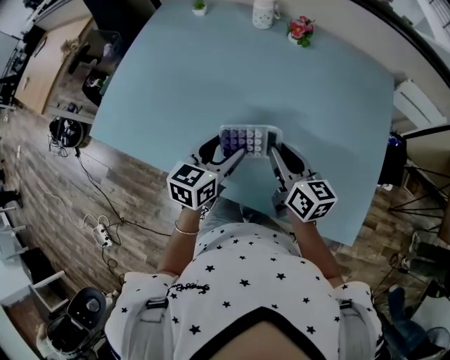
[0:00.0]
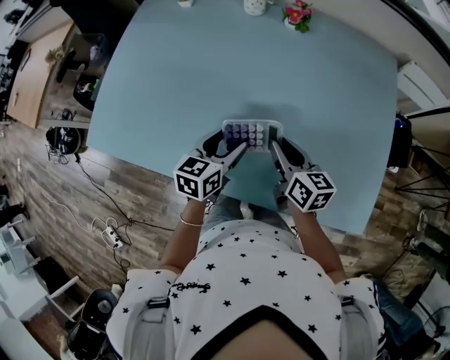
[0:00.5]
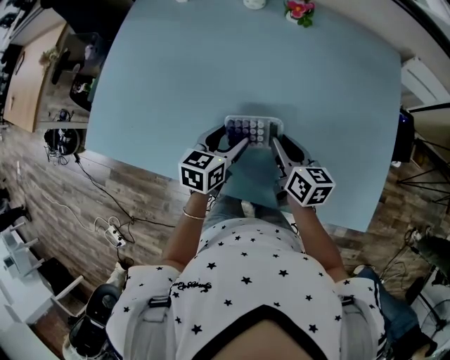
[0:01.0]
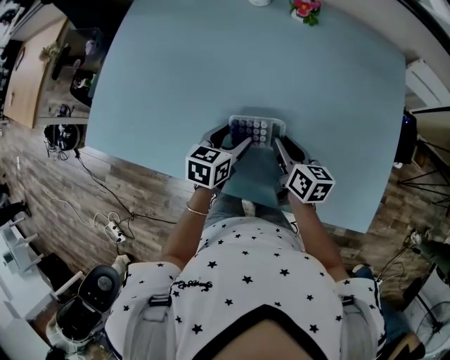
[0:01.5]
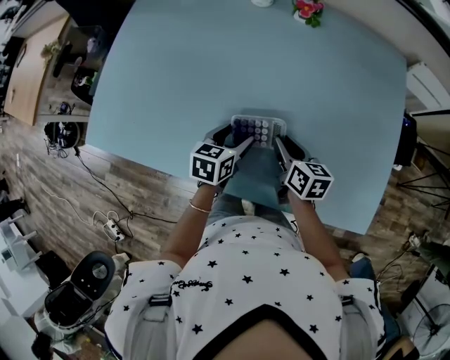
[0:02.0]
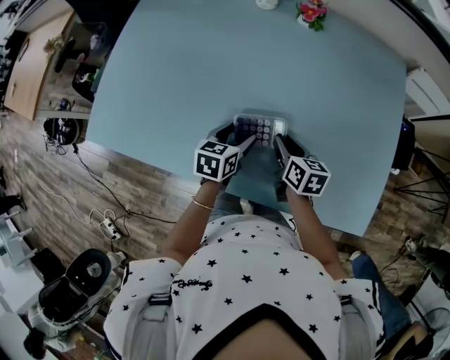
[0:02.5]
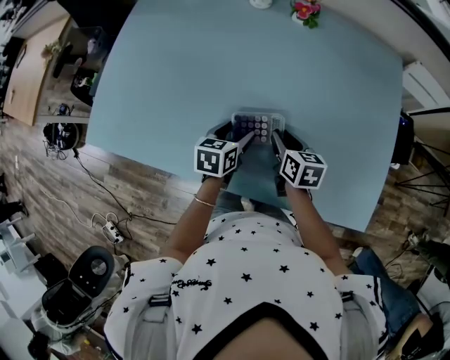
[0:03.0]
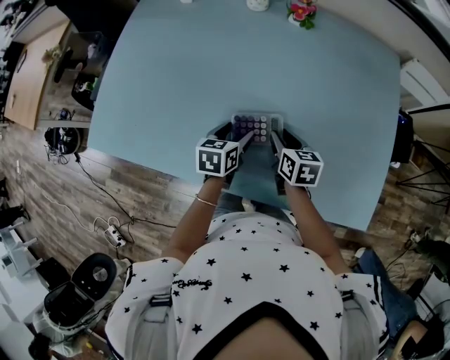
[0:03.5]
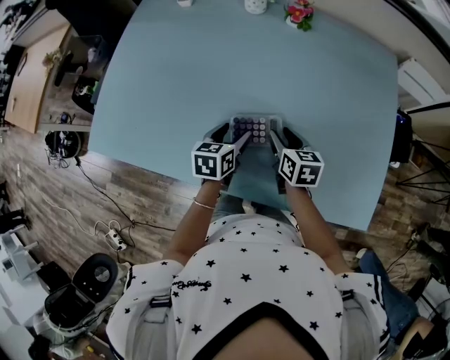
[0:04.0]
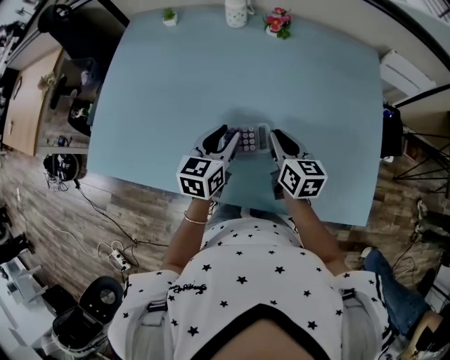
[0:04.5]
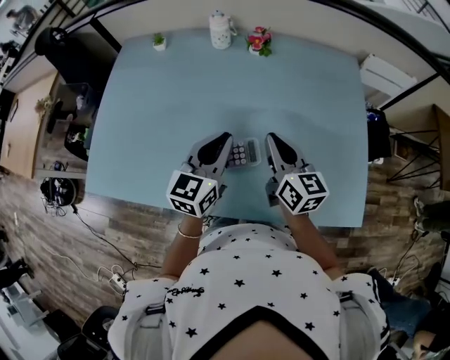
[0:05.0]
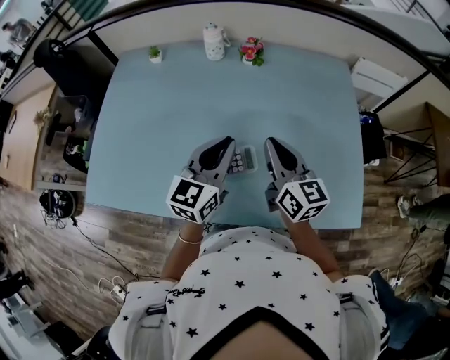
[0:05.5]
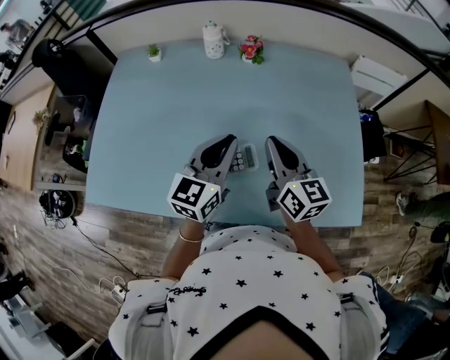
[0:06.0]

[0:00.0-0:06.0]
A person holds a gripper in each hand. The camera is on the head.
0:00.0 to 0:02.0: The two grippers go roughly 10 cm downward. The right gripper rotates approximately 20 degrees.
0:02.0 to 0:04.0: The right gripper opens up.
0:04.0 to 0:06.0: Both grippers move upward, about 20 cm. The left gripper tips its fingers upward by about 30 degrees, and closes. The right gripper tilts its fingers about 30 degrees upward, and closes.

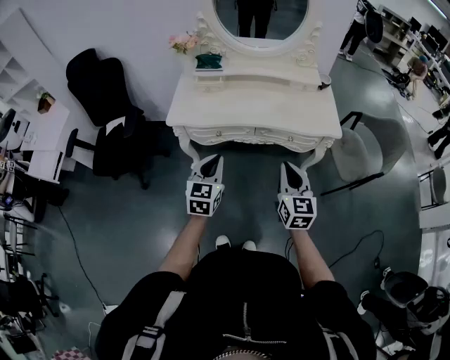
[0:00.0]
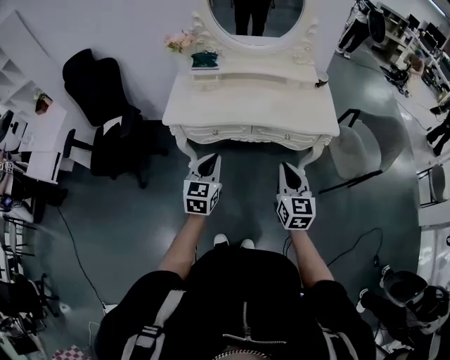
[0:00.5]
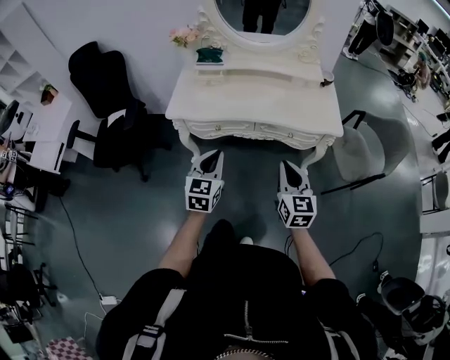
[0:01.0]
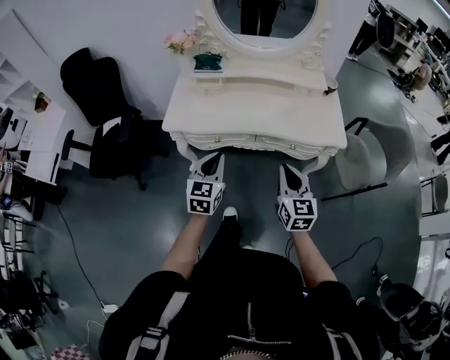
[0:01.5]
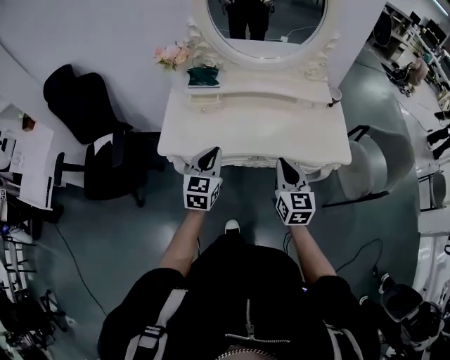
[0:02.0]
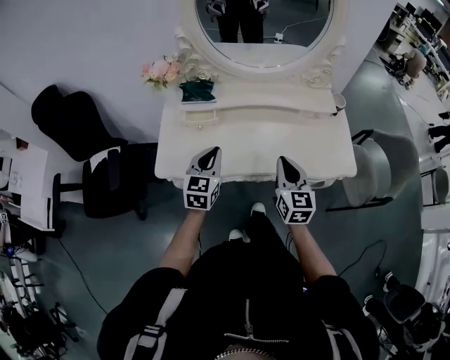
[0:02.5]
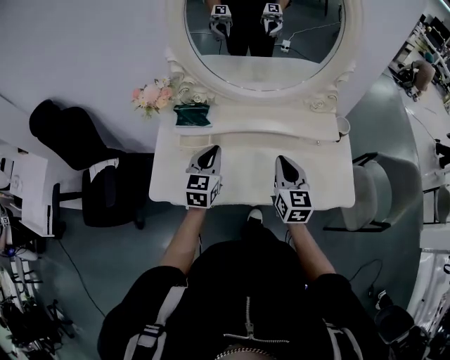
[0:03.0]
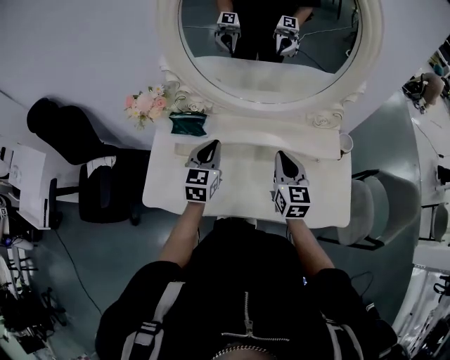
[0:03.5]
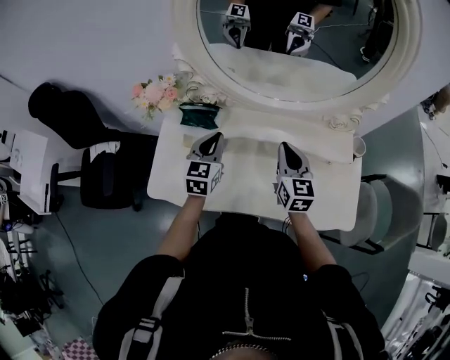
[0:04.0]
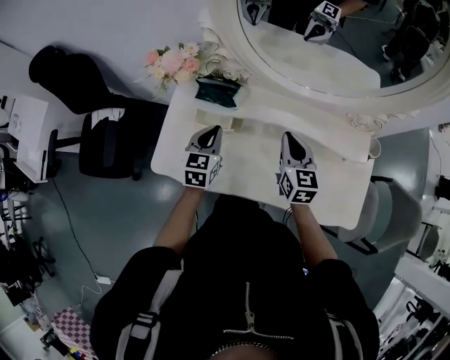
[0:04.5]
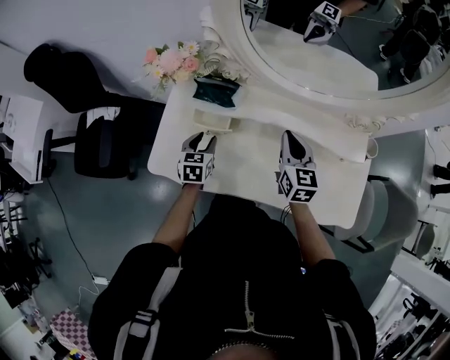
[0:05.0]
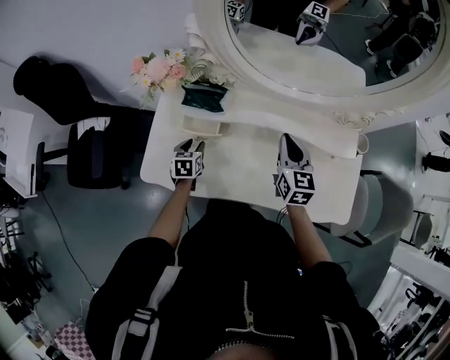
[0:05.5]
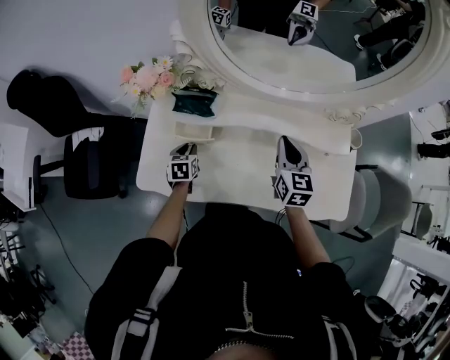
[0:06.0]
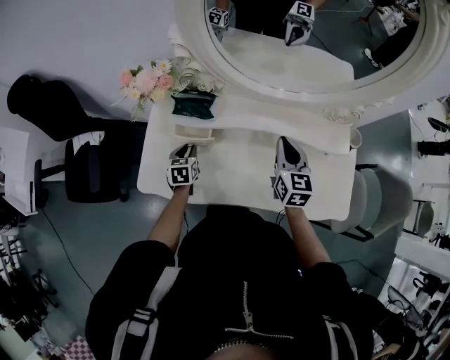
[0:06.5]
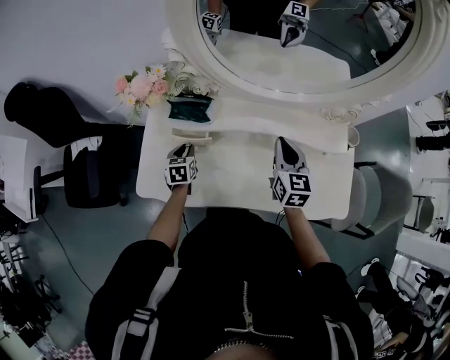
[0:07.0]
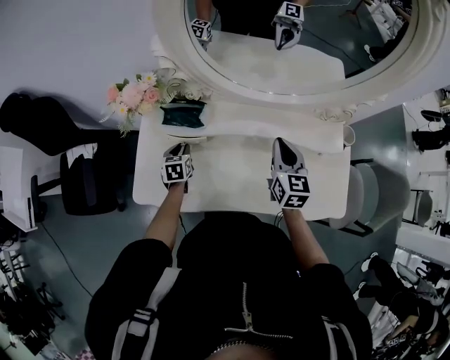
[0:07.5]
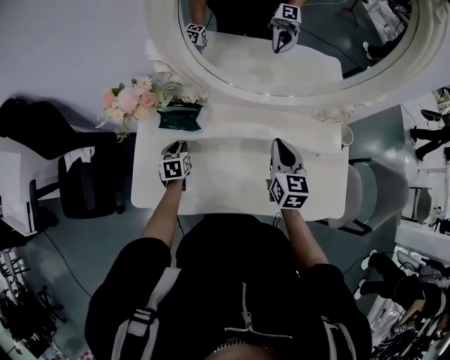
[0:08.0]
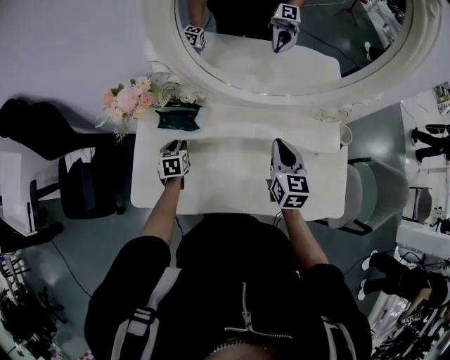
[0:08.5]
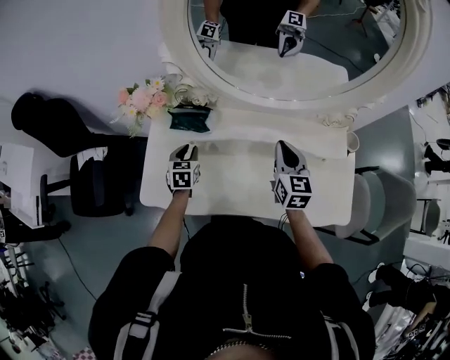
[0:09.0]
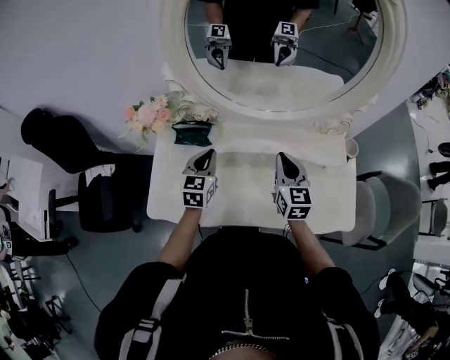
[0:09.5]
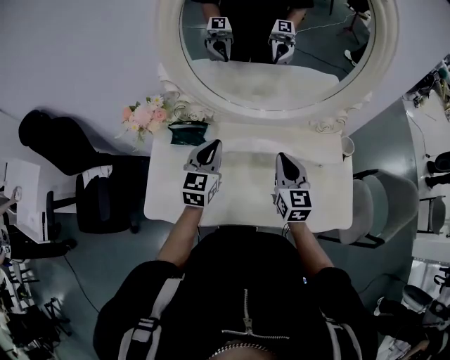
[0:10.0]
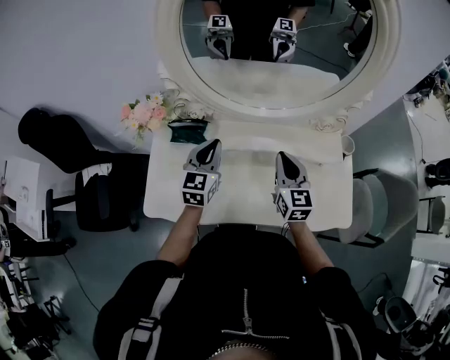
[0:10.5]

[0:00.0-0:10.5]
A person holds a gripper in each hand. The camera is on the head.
0:00.0 to 0:02.0: Both grippers travel together forward, about 20 cm.
0:02.0 to 0:04.0: The grippers both shift forward by some 35 cm.
0:04.0 to 0:06.5: The left gripper shifts about 25 cm downward and to the left, swivels about 30 degrees, and opens.
0:06.5 to 0:08.5: The left gripper heads forward, covering roughly 5 cm.
0:08.5 to 0:10.5: The left gripper moves upward and to the right, approximately 30 cm, points its fingers about 30 degrees further upward, and closes.

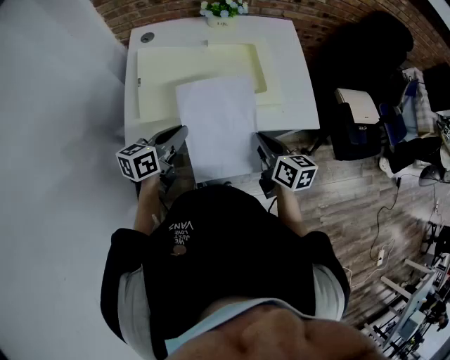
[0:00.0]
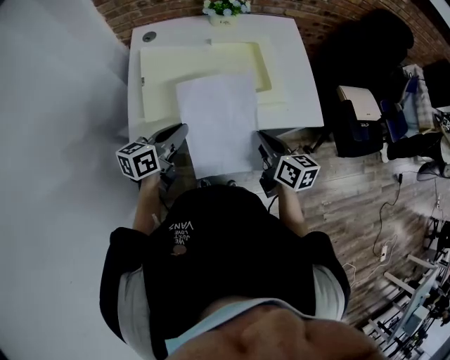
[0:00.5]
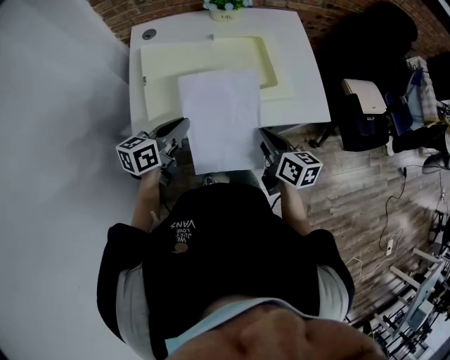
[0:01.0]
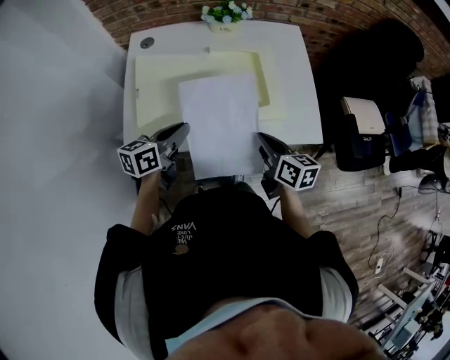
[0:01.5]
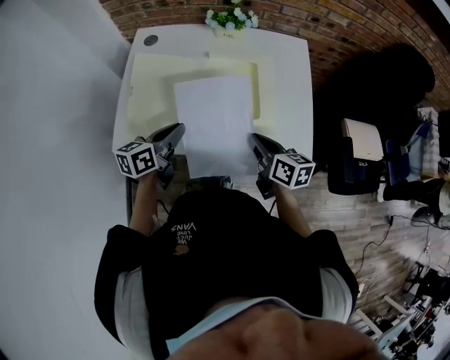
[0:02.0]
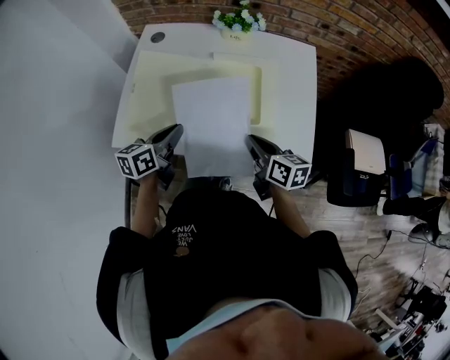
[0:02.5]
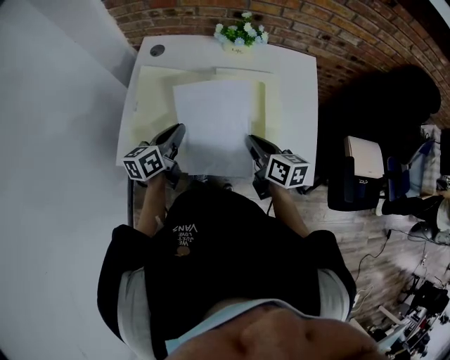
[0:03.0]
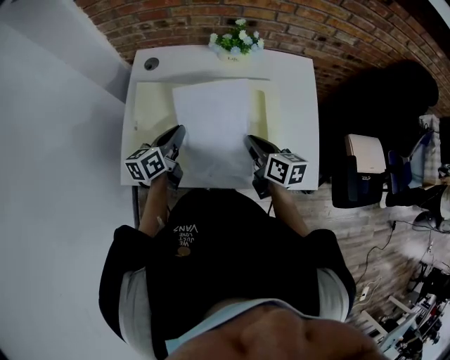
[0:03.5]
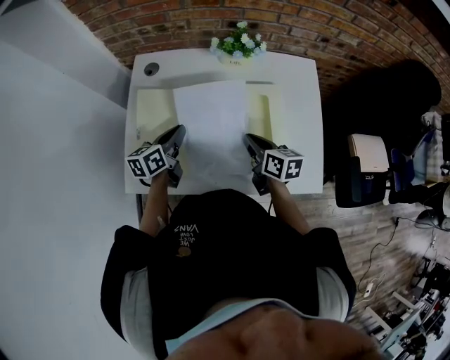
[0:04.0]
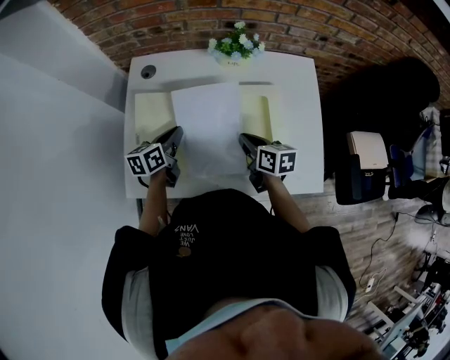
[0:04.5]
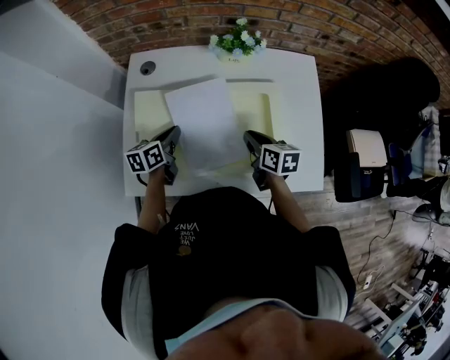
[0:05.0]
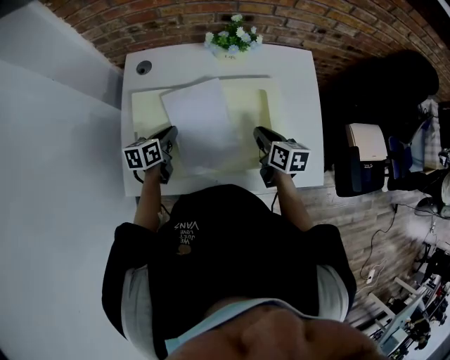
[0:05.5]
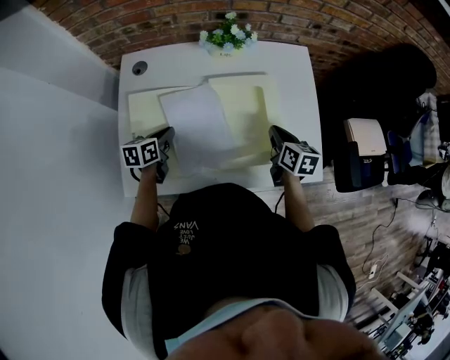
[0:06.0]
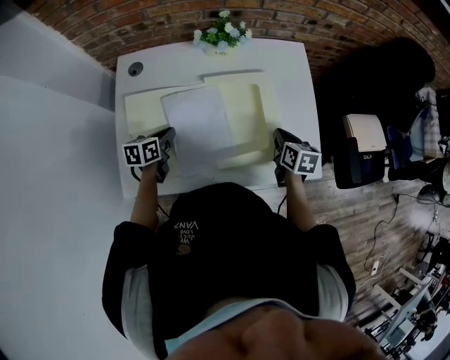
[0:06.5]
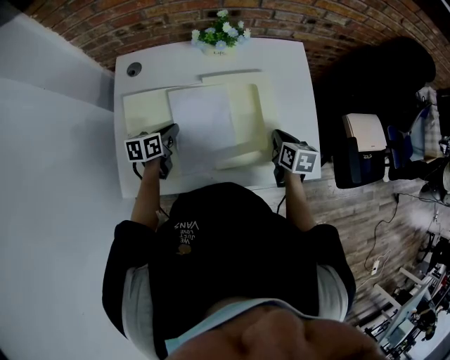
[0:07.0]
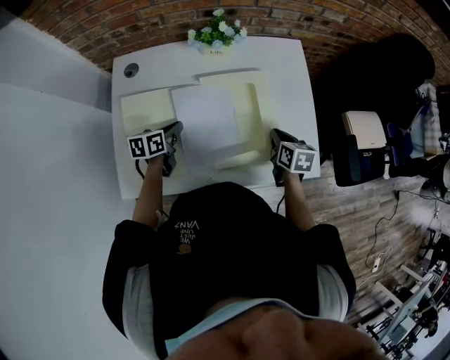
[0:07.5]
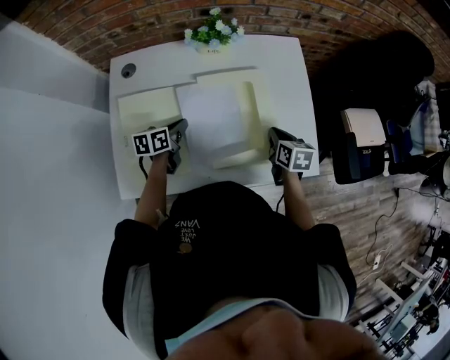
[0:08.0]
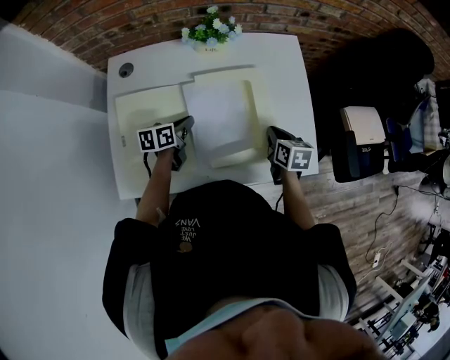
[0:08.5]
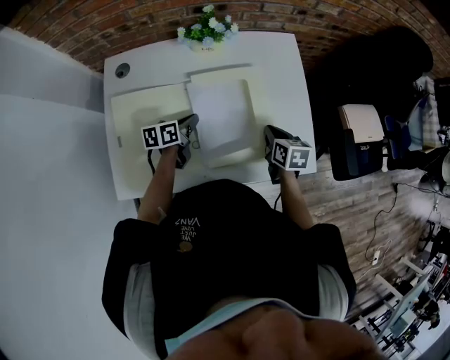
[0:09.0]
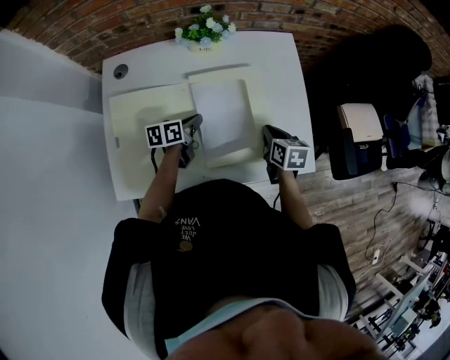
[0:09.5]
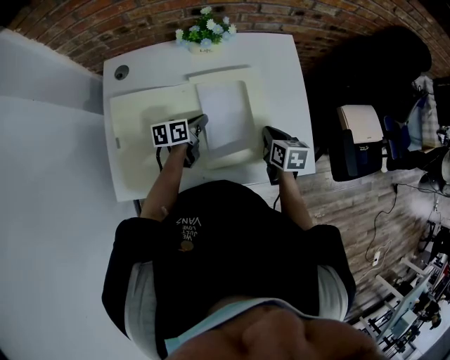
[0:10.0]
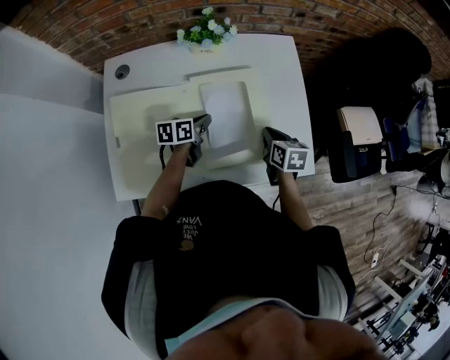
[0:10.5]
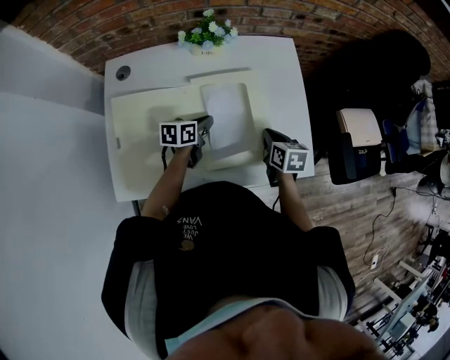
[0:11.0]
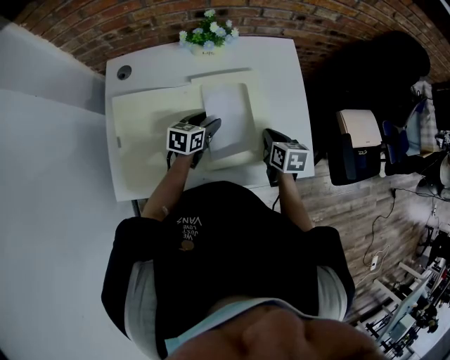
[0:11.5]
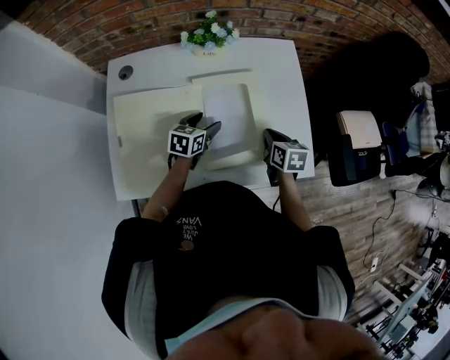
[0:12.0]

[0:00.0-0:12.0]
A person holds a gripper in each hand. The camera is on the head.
0:00.0 to 0:02.0: Both grippers move forward, some 10 cm.
0:02.0 to 0:04.0: Both grippers travel together forward, approximately 15 cm.
0:04.0 to 0:06.0: The right gripper travels to the right by some 10 cm, while the left gripper goes approximately 5 cm downward.
0:06.0 to 0:08.0: The left gripper shifts roughly 10 cm to the right. The right gripper ends up roughly 5 cm from where it was.
0:08.0 to 0:10.0: The left gripper heads to the right, covering some 10 cm.
0:10.0 to 0:12.0: The left gripper changes its angle by roughly 30 degrees, and opens.
